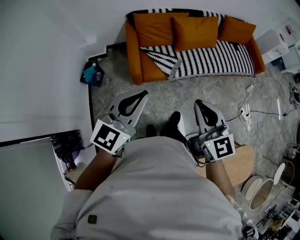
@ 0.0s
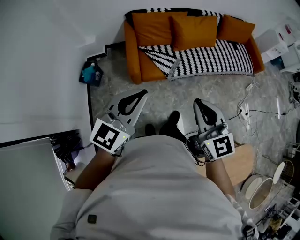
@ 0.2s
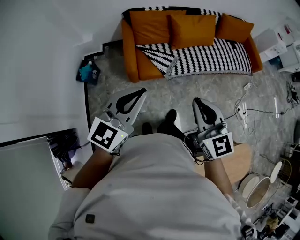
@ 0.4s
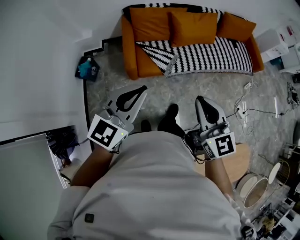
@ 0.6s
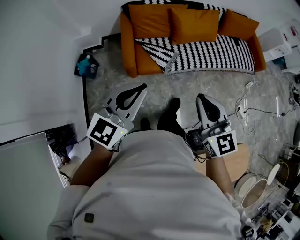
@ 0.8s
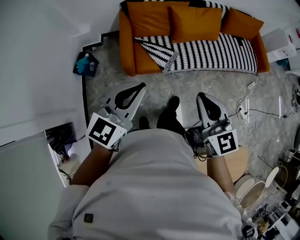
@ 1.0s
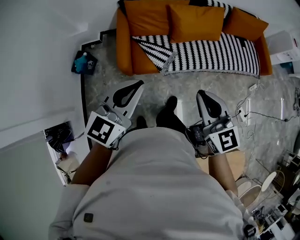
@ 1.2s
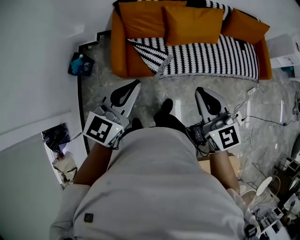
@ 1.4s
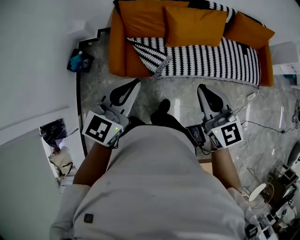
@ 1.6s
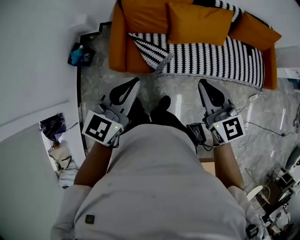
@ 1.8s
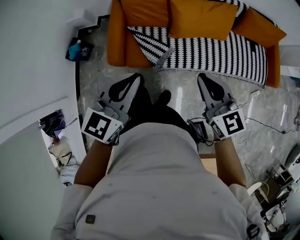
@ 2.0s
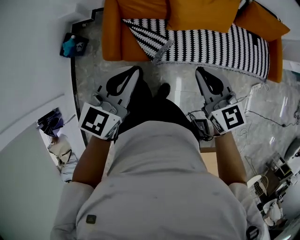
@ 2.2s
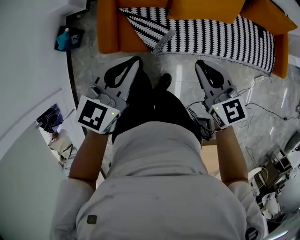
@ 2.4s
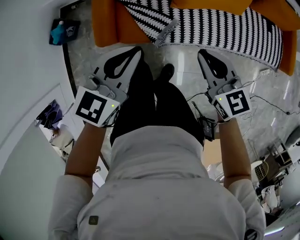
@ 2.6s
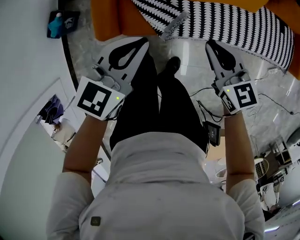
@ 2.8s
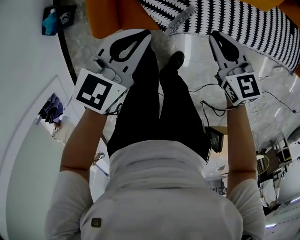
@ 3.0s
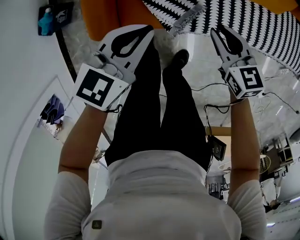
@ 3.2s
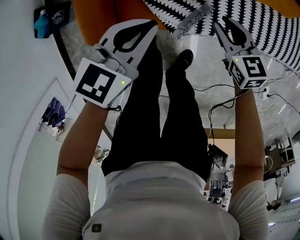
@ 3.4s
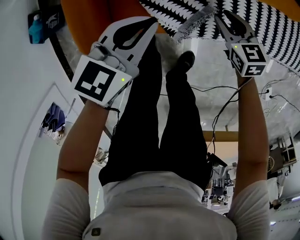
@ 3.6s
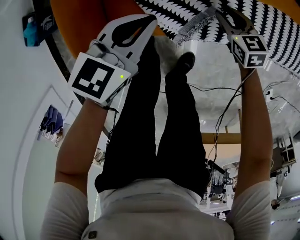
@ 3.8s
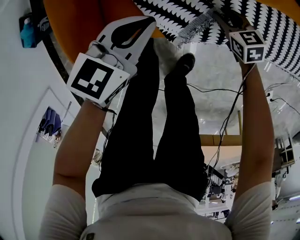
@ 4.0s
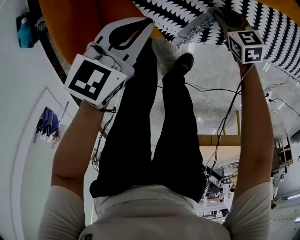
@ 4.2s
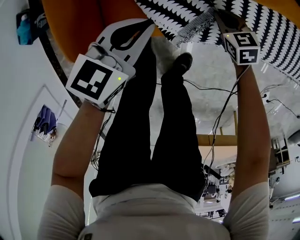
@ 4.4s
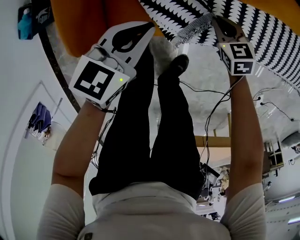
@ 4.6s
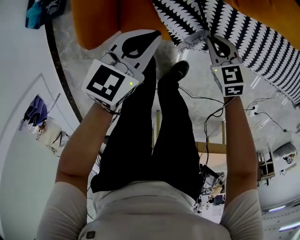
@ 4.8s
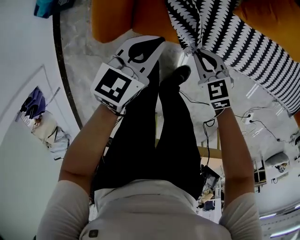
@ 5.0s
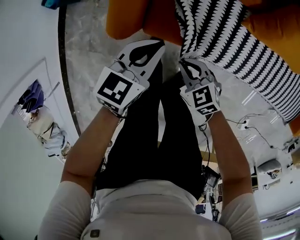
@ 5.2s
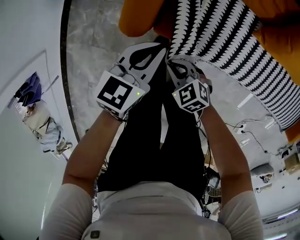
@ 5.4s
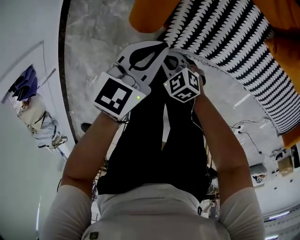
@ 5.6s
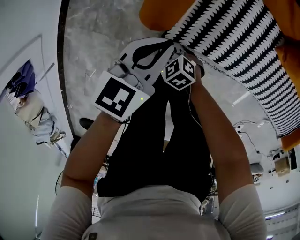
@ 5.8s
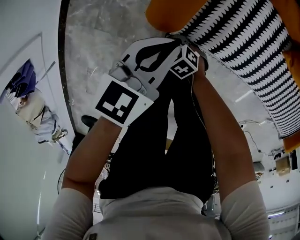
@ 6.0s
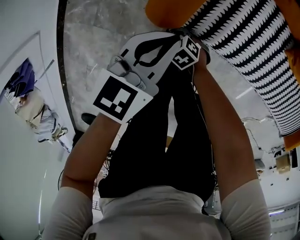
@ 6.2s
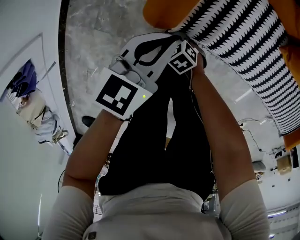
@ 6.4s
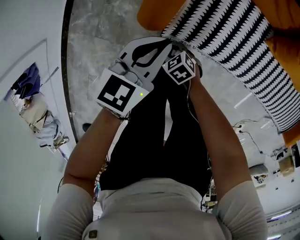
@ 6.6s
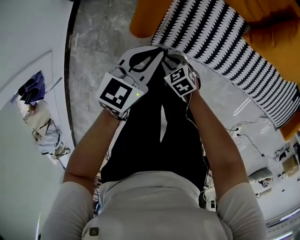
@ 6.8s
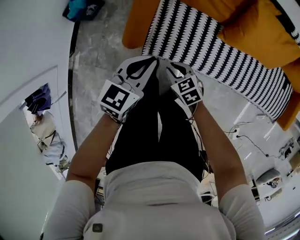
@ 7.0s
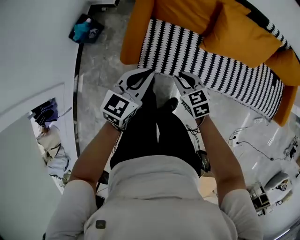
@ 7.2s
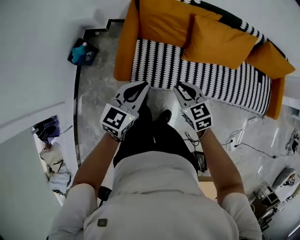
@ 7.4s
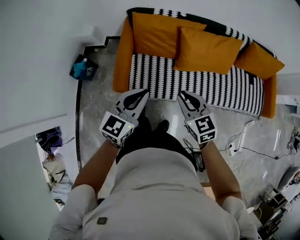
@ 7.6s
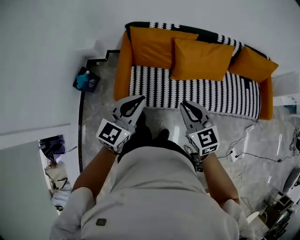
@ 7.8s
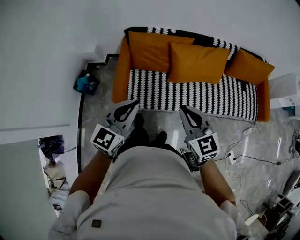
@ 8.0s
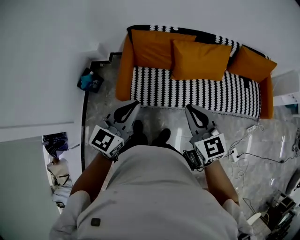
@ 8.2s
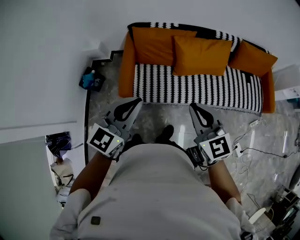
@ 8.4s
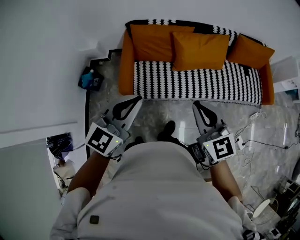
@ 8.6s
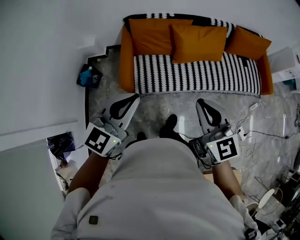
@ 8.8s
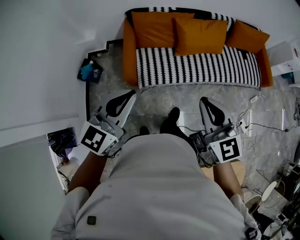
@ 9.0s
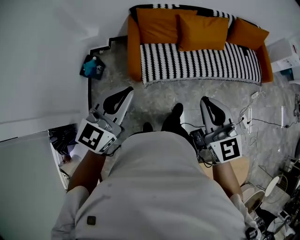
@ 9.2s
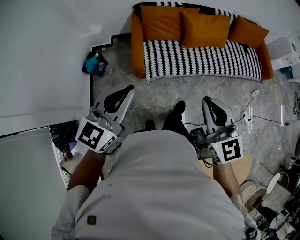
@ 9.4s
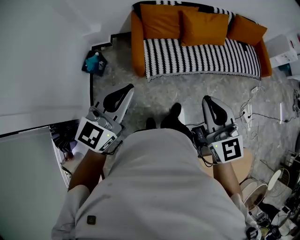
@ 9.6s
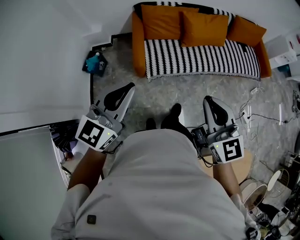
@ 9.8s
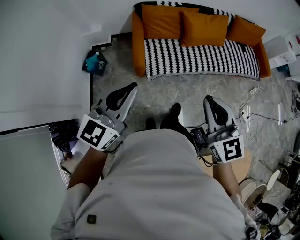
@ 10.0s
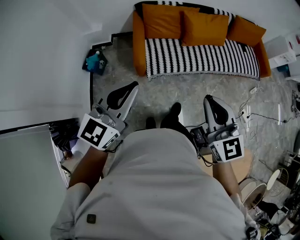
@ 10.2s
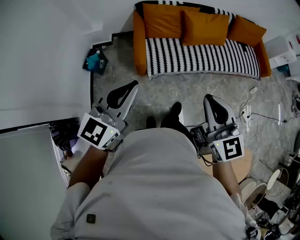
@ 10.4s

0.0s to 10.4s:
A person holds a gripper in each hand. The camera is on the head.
0.0s to 1.4s: Both grippers move forward and to the right, approximately 25 cm.
1.4s to 3.0s: Both grippers move downward and forward, some 40 cm. The right gripper rotates about 30 degrees; the left gripper changes its angle by approximately 20 degrees.
3.0s to 4.4s: Both grippers move downward, some 30 cm. The right gripper turns by roughly 20 degrees, and opens, then closes again.
4.4s to 6.0s: The right gripper moves approximately 15 cm upward and comes back, and rotates roughly 40 degrees. The left gripper shifts by approximately 10 cm, and changes its angle by about 20 degrees.
6.0s to 7.4s: Both grippers move upward, approximately 50 cm. The left gripper swivels approximately 30 degrees. Meanwhile the right gripper rotates roughly 50 degrees.
7.4s to 9.0s: Both grippers move upward and backward, some 35 cm. The left gripper rotates approximately 20 degrees. The right gripper turns by some 30 degrees.
9.0s to 10.4s: Both grippers move backward and to the left, some 20 cm.

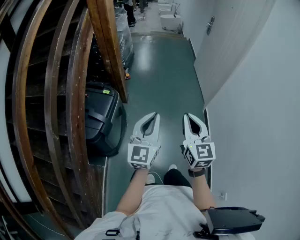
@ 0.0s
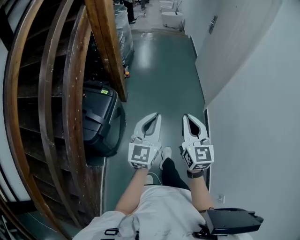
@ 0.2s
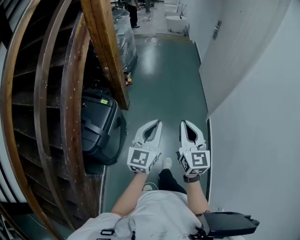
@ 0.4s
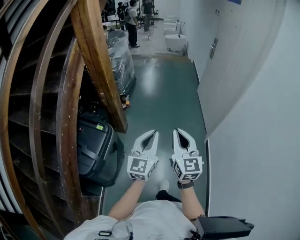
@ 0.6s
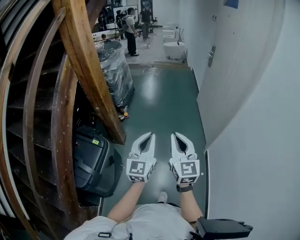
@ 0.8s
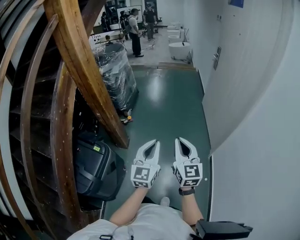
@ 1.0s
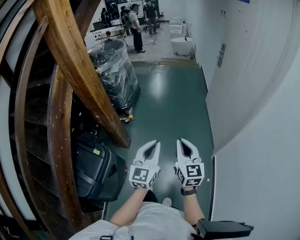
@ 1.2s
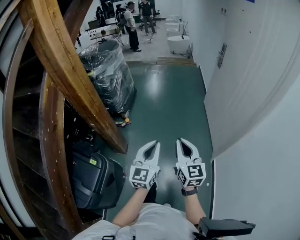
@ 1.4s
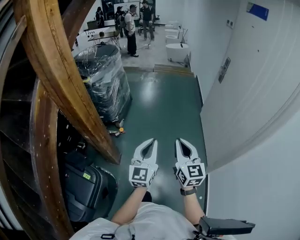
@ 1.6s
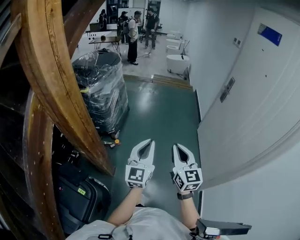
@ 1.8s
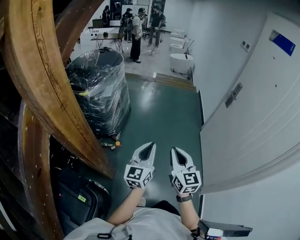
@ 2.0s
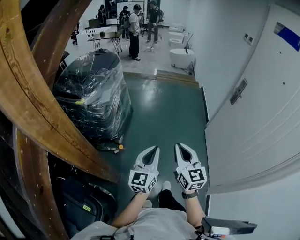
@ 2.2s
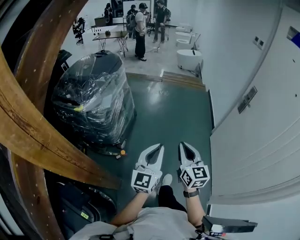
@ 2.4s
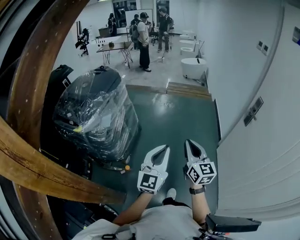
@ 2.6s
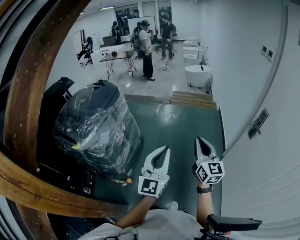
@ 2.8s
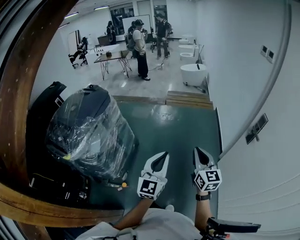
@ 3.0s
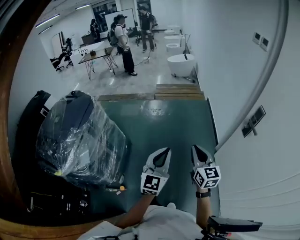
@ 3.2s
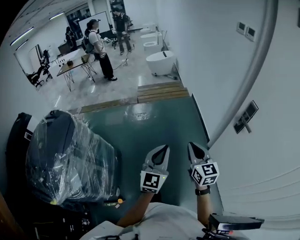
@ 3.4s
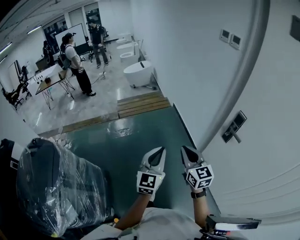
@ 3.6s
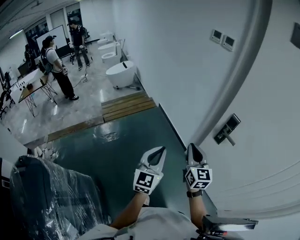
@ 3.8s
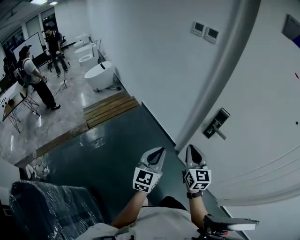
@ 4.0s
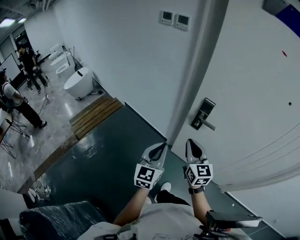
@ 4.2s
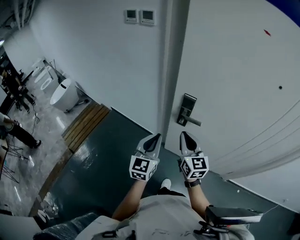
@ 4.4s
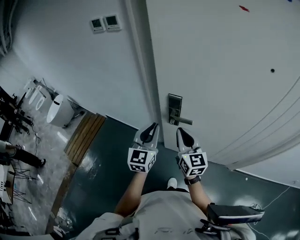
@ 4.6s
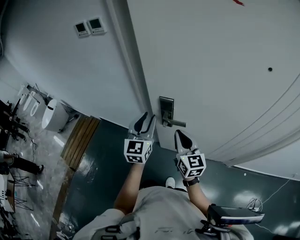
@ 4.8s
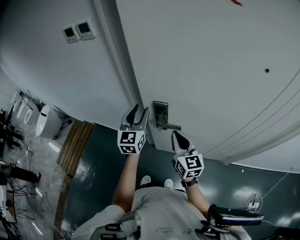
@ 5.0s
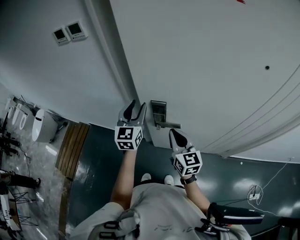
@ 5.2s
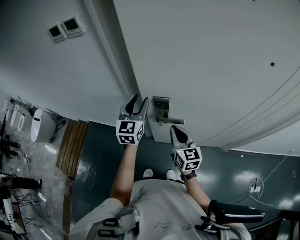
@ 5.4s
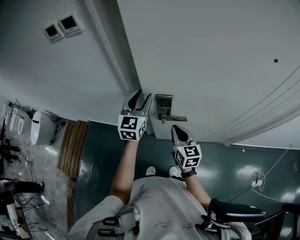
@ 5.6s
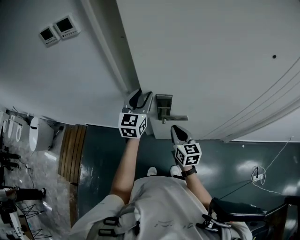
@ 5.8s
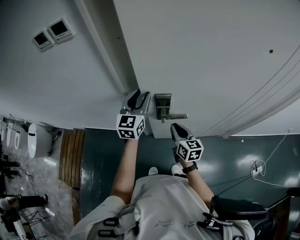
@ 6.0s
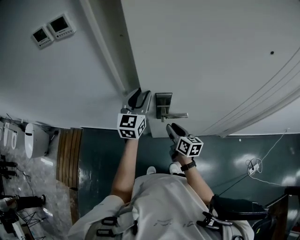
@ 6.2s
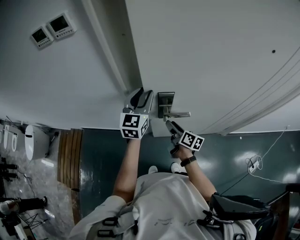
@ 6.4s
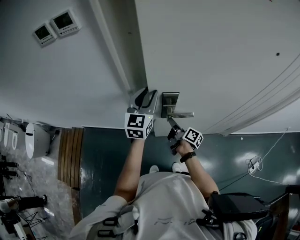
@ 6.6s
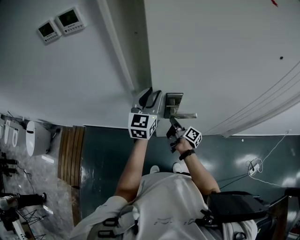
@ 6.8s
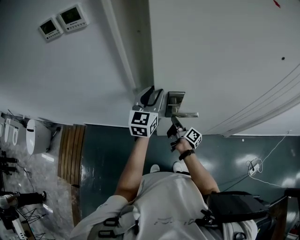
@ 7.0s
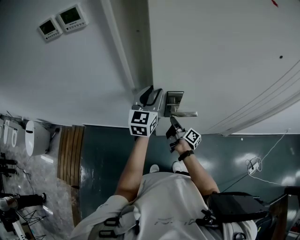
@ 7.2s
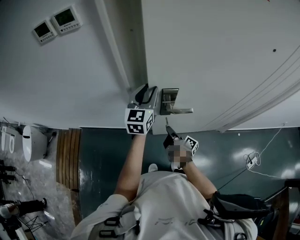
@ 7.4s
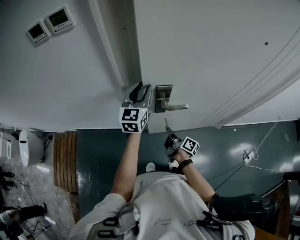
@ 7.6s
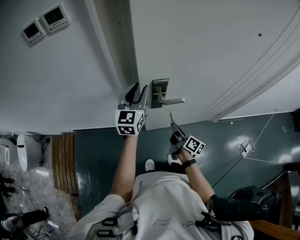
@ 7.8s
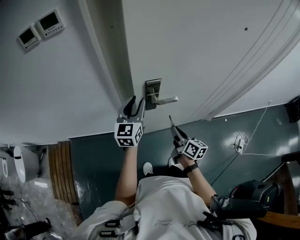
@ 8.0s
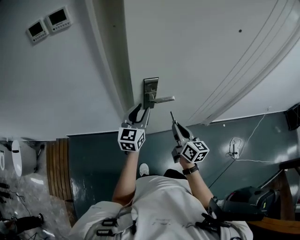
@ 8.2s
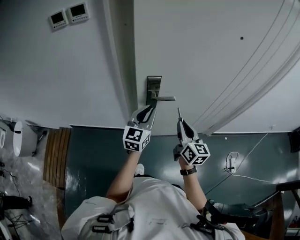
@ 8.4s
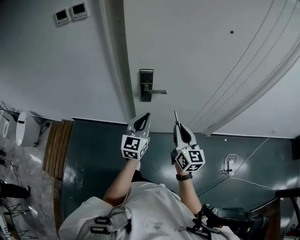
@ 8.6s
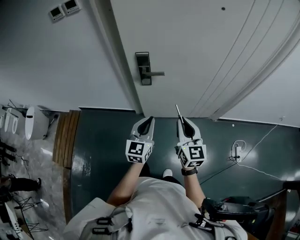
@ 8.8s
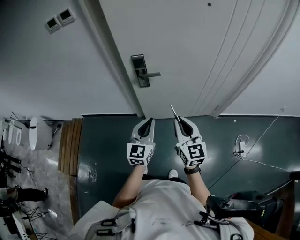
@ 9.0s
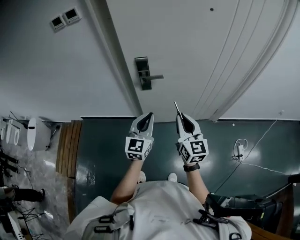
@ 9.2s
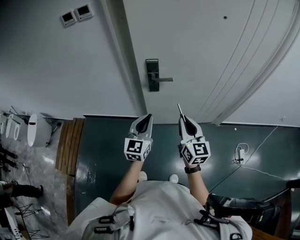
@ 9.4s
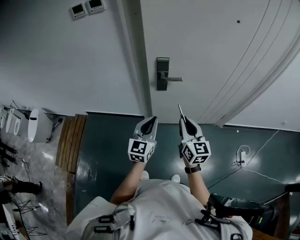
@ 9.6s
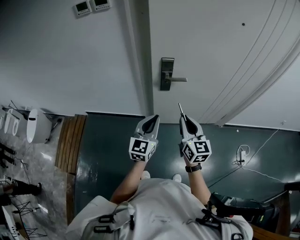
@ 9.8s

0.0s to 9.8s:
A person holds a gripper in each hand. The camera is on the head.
0.0s to 1.4s: The two grippers travel together, forward, roughly 50 cm.
1.4s to 2.8s: The pair of grippers is taken forward, approximately 70 cm.
2.8s to 4.2s: The right gripper changes place by approximately 40 cm, and swivels some 60 degrees. The left gripper moves some 50 cm, and rotates about 60 degrees.
4.2s to 5.6s: The right gripper travels forward, downward and to the right by approximately 20 cm, and turns by some 30 degrees, while the left gripper is displaced forward by roughly 35 cm, swivels roughly 20 degrees, and opens.
5.6s to 7.0s: The right gripper is displaced downward and forward by roughly 15 cm, rolls clockwise, seen from behind, by roughly 70 degrees, and opens and closes again.
7.0s to 8.4s: The right gripper moves upward, backward and to the right, roughly 30 cm, and twists some 60 degrees counterclockwise, seen from behind, while the left gripper is displaced backward and to the right by approximately 20 cm.
8.4s to 9.8s: The left gripper heads backward, covering roughly 15 cm. The right gripper goes about 15 cm backward and to the left.

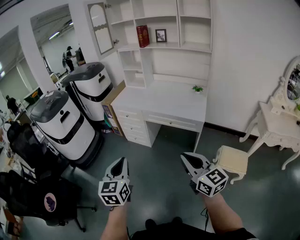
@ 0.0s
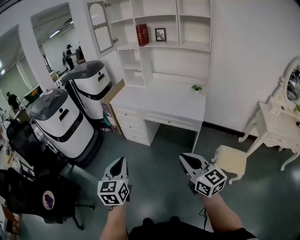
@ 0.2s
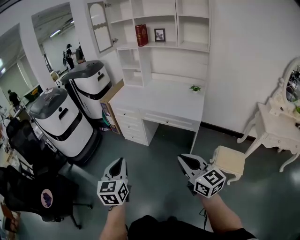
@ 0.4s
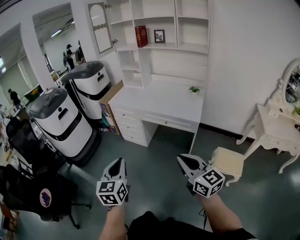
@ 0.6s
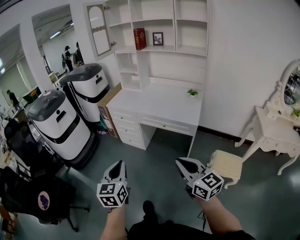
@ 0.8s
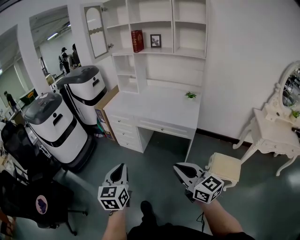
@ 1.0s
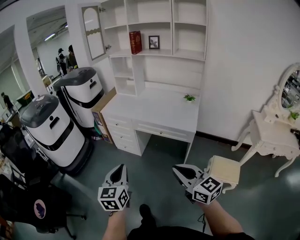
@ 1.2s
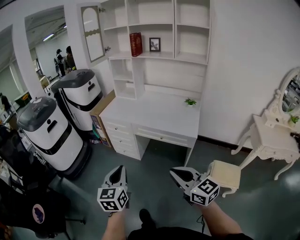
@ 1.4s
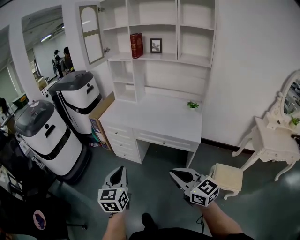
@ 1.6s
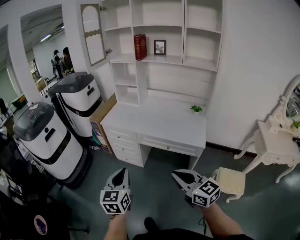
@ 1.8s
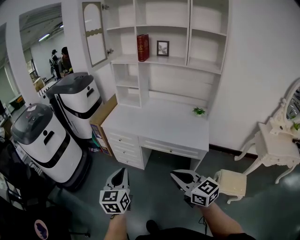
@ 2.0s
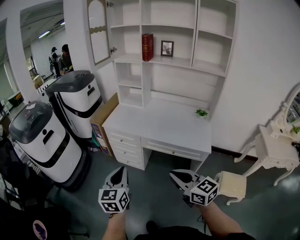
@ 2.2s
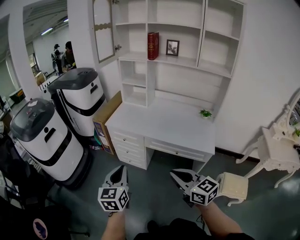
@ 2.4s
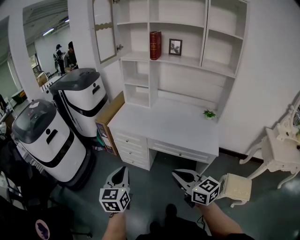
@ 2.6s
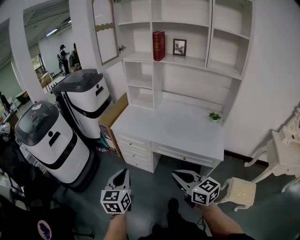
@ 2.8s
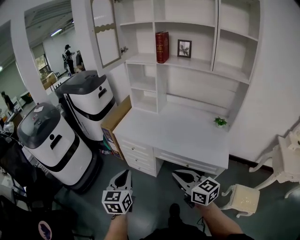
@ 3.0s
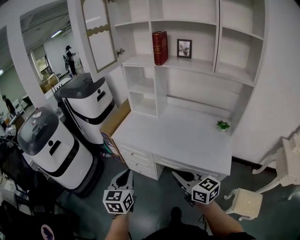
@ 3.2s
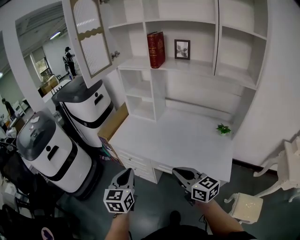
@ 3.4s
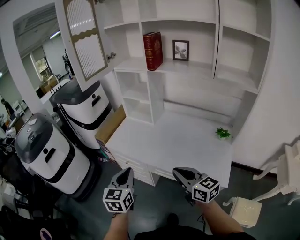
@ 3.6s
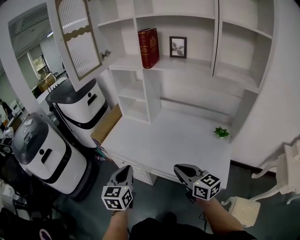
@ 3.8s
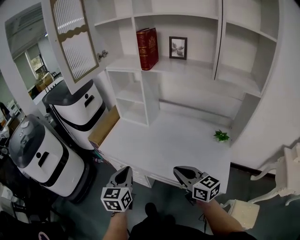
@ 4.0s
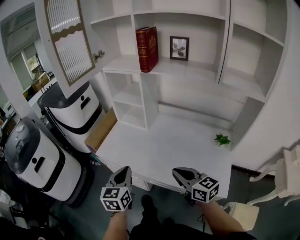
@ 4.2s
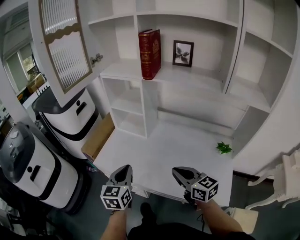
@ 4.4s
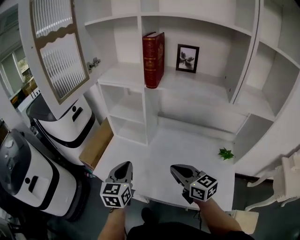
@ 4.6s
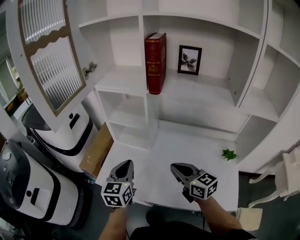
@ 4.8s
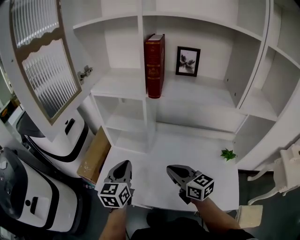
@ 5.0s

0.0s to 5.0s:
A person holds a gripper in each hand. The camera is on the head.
0.0s to 1.6s: The two grippers go roughly 15 cm forward.
1.6s to 3.4s: Both grippers travel together forward, roughly 35 cm.
3.4s to 5.0s: Both grippers travel together forward, some 40 cm.
